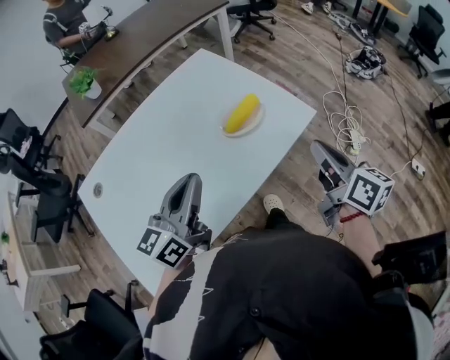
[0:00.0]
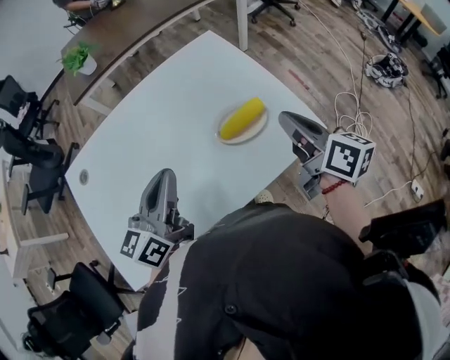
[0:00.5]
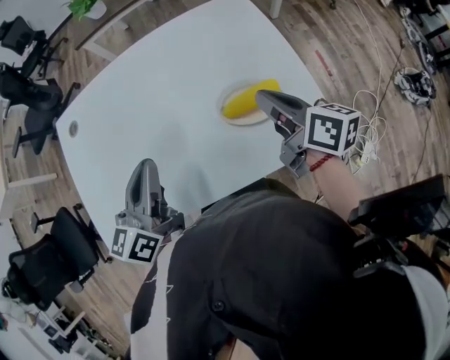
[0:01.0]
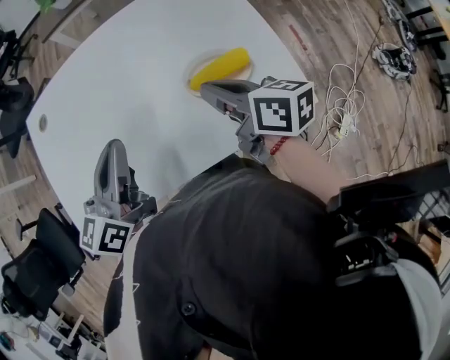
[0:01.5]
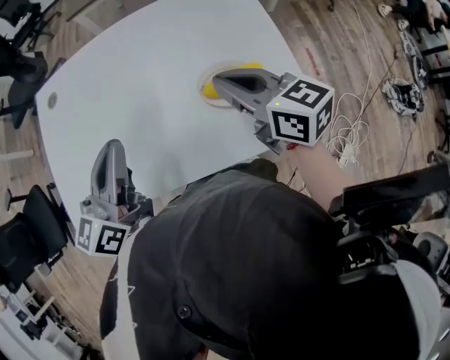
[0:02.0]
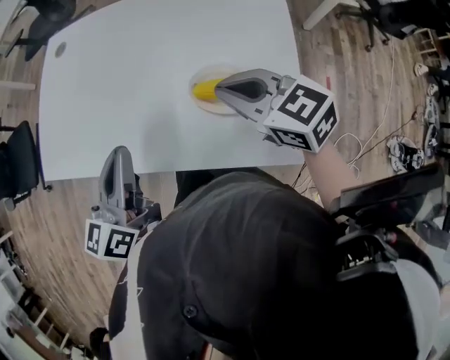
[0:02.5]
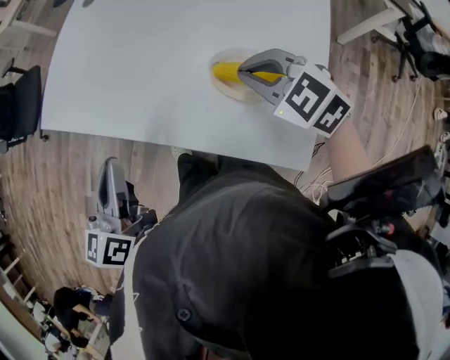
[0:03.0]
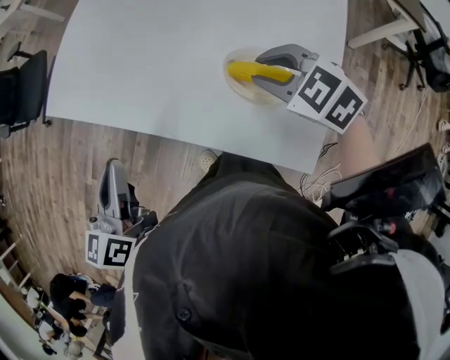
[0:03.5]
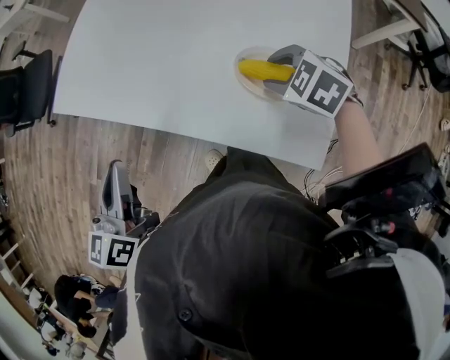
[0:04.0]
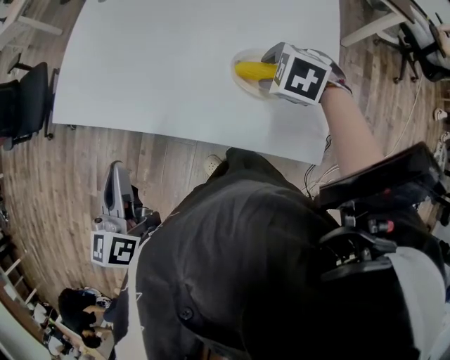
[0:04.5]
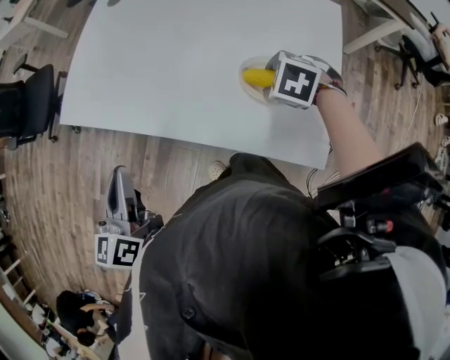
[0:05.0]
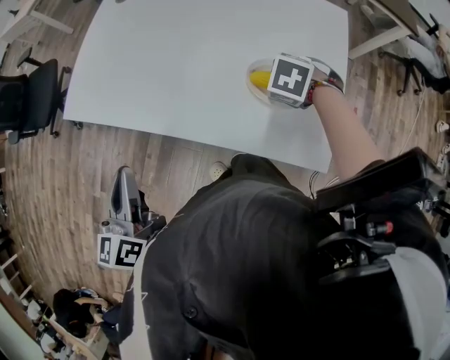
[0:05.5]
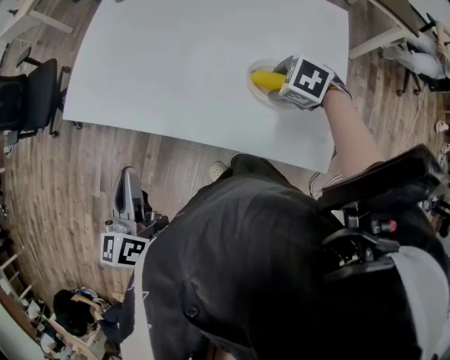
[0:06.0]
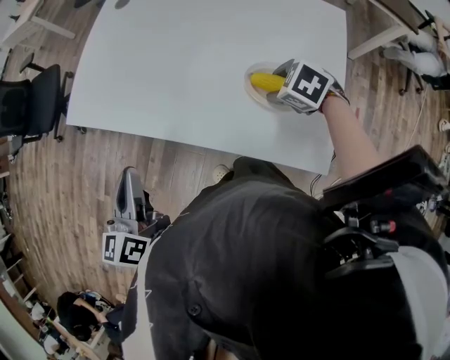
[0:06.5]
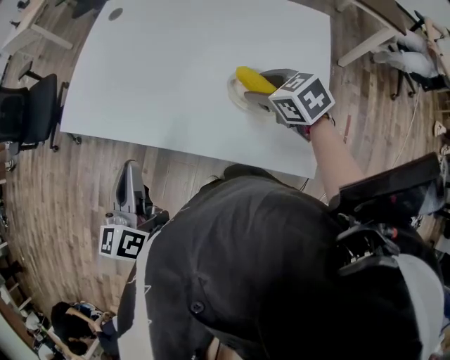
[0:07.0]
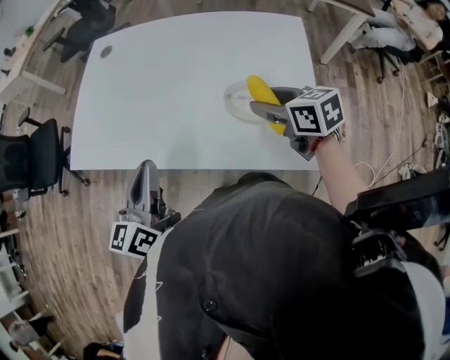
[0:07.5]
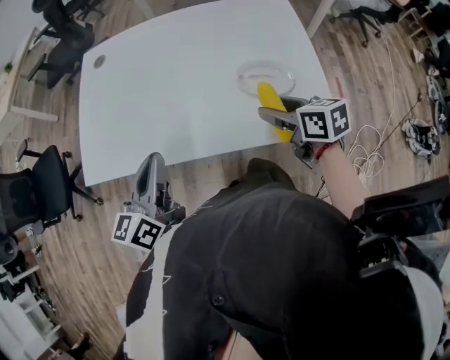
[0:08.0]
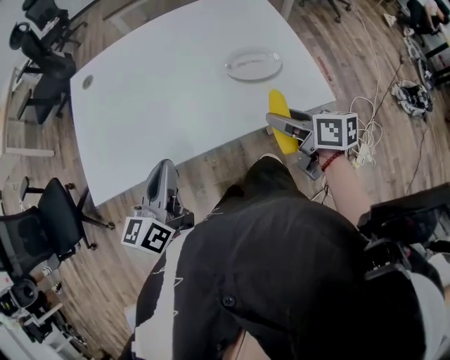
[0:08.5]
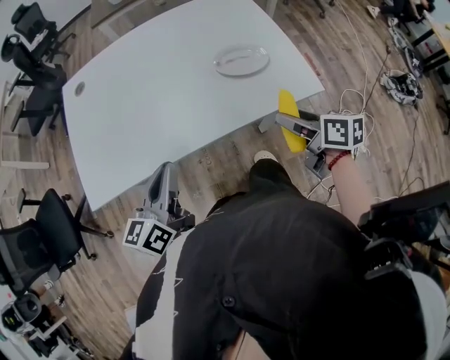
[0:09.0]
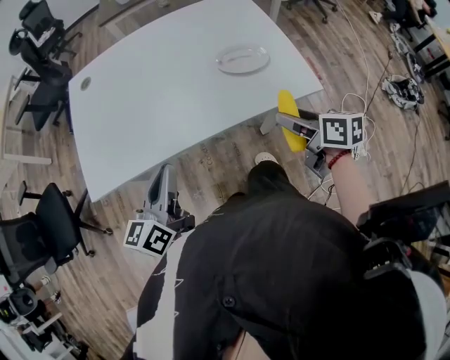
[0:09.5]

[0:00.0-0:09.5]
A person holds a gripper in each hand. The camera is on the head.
0.0 to 2.0 s: The left gripper changes place by some 5 cm, and swivels roughly 40 degrees. The right gripper moves about 25 cm, and swivels about 60 degrees.
2.0 to 4.0 s: The left gripper changes place by some 20 cm, and turns by about 50 degrees, while the right gripper travels downward by approximately 10 cm, tips its fingers downward by roughly 40 degrees, and opens its fingers.
4.0 to 5.5 s: The right gripper rotates roughly 20 degrees.
5.5 to 7.5 s: The left gripper moves about 10 cm, while the right gripper is displaced upward by some 10 cm, and tilts its fingers about 50 degrees upward.
7.5 to 9.5 s: The left gripper moves about 10 cm, and rotates approximately 30 degrees; the right gripper changes place by some 20 cm, and turns by approximately 40 degrees.

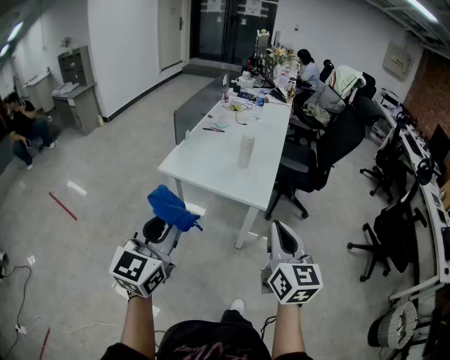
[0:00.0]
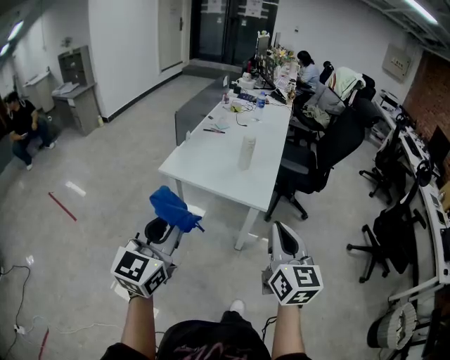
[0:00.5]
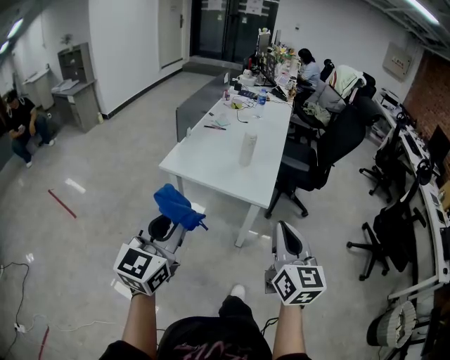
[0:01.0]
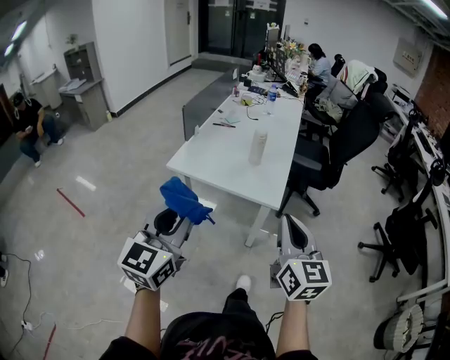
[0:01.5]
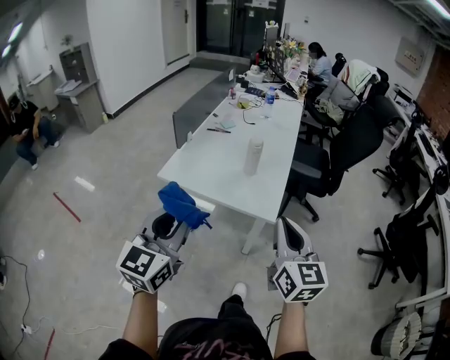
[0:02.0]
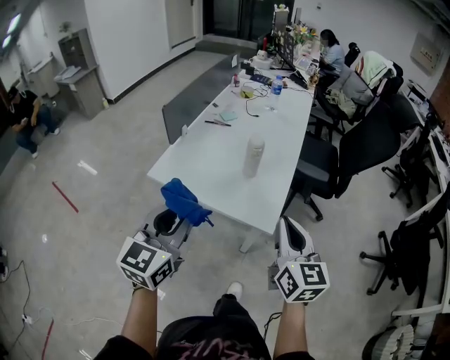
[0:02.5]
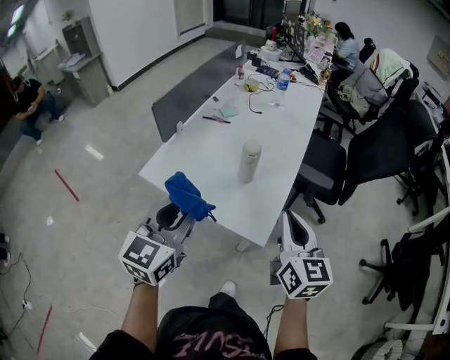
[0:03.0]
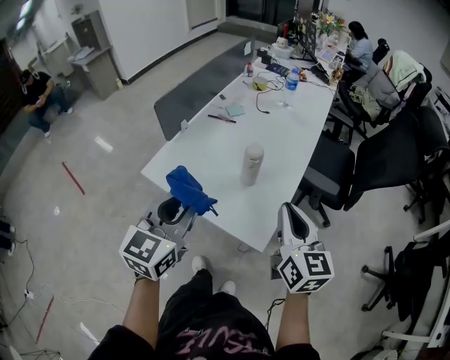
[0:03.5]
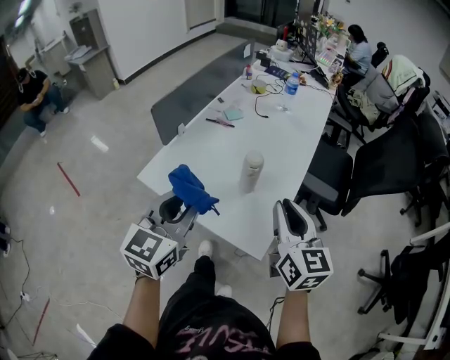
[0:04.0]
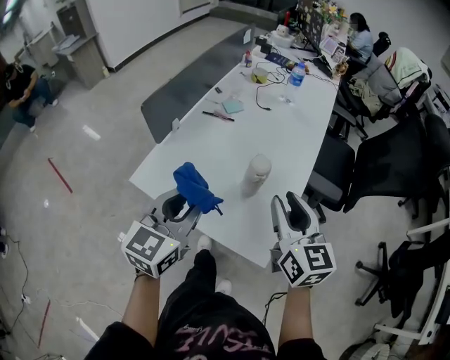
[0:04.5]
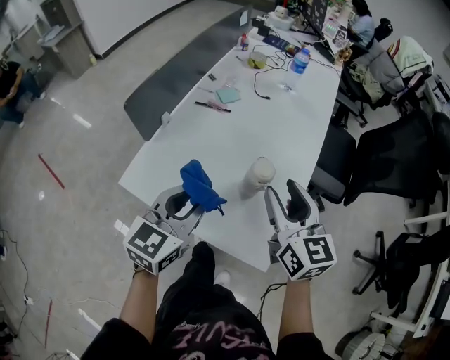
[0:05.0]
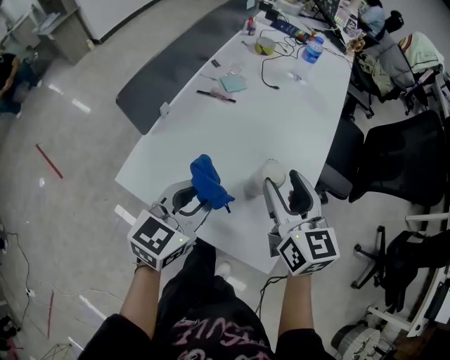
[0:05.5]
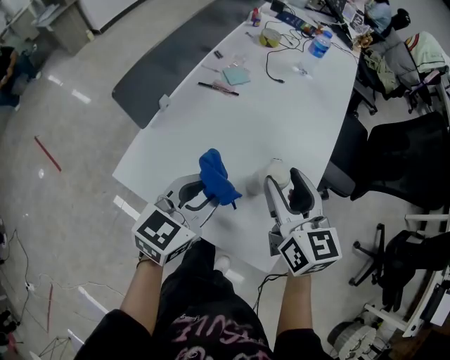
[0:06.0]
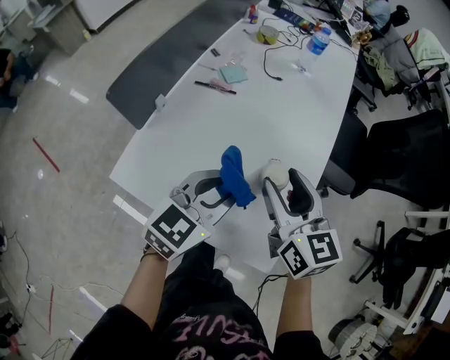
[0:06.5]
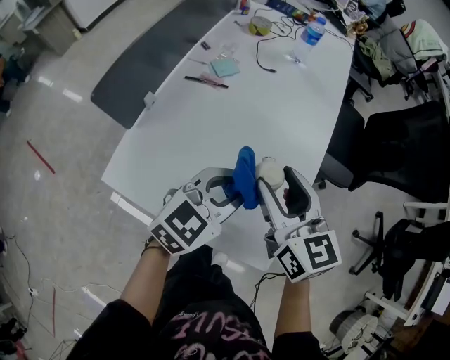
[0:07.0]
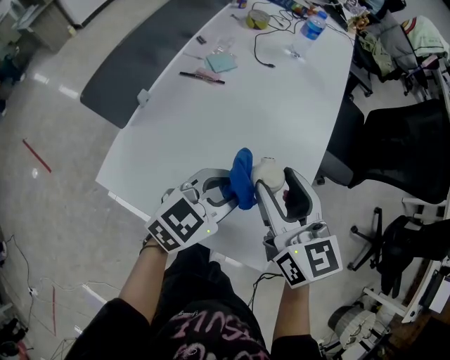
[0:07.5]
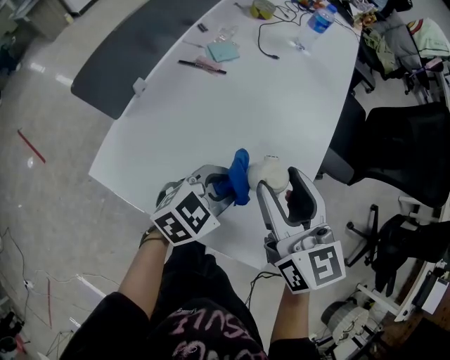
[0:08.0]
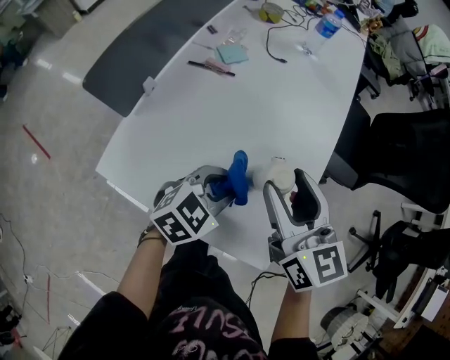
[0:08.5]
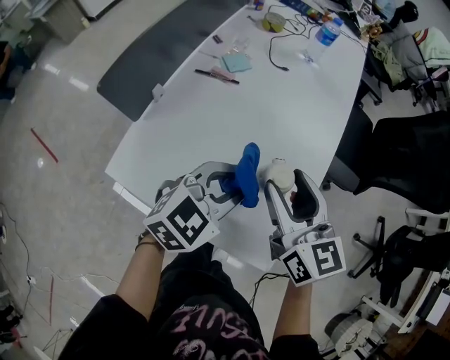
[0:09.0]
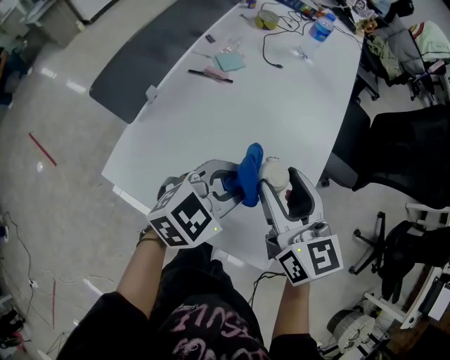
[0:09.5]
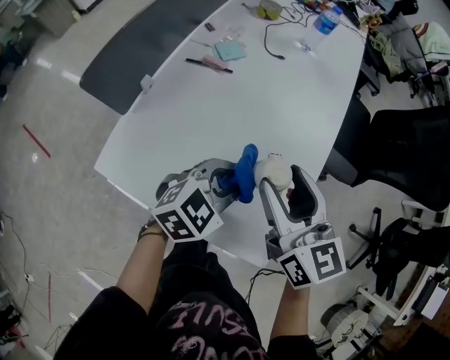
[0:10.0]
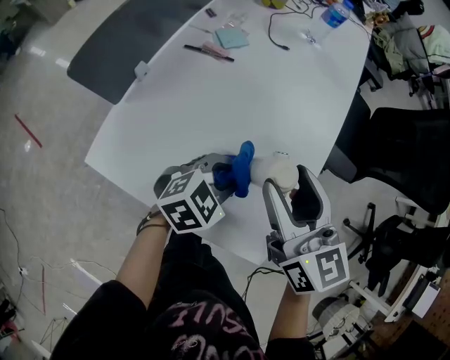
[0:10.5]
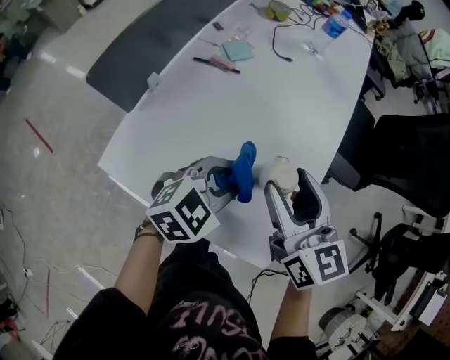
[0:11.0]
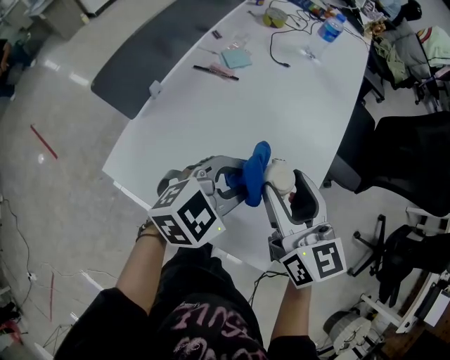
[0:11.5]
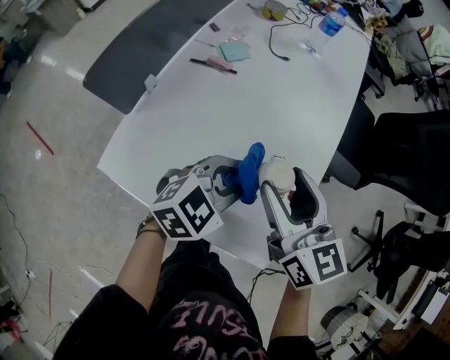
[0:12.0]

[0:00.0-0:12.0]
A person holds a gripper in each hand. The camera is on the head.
0.0 to 2.0 s: Both grippers travel together forward, about 10 cm.
2.0 to 4.0 s: Both grippers travel together forward, roughly 25 cm.
4.0 to 6.0 s: The left gripper travels forward and downward by approximately 20 cm, and turns by approximately 20 degrees; the right gripper is displaced forward, to the left and downward by some 20 cm, and opens its fingers.
6.0 to 8.0 s: The left gripper heads downward and to the right, covering some 10 cm, and turns by about 30 degrees.
8.0 to 10.0 s: The left gripper reaches approximately 10 cm upward, then returns.
10.0 to 12.0 s: The left gripper travels downward and back again, approximately 5 cm each way.

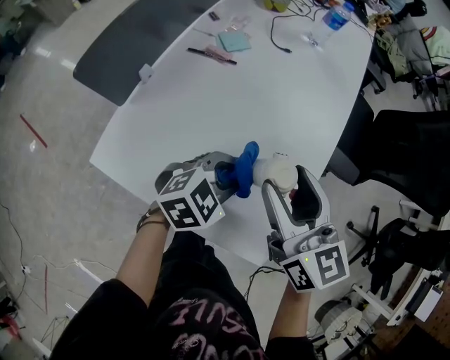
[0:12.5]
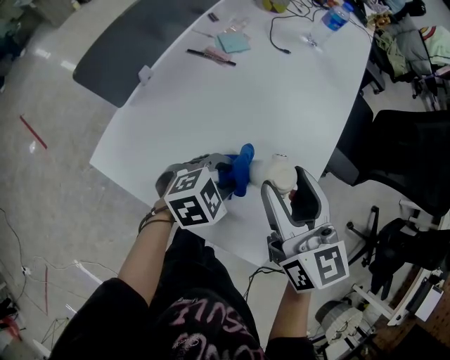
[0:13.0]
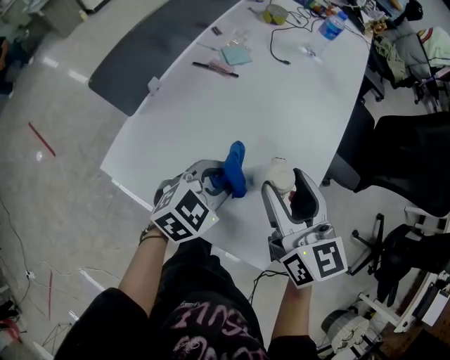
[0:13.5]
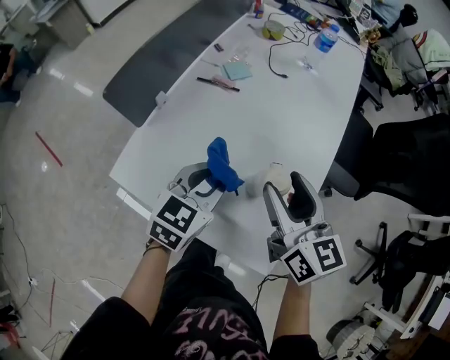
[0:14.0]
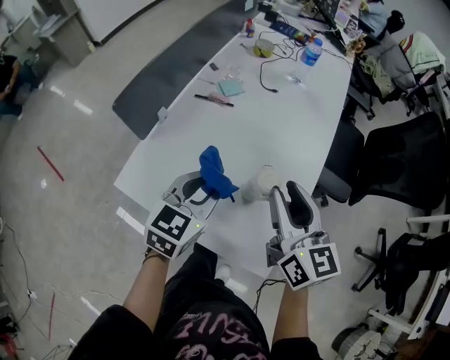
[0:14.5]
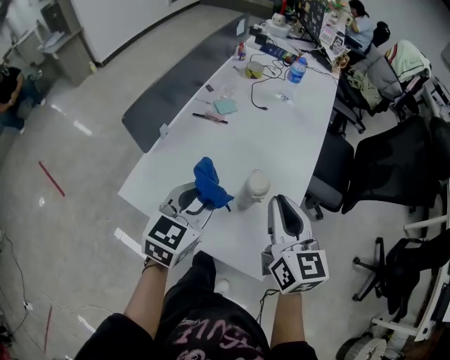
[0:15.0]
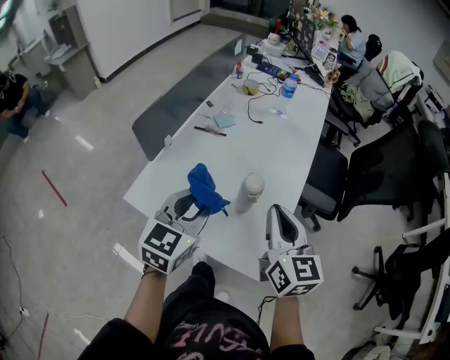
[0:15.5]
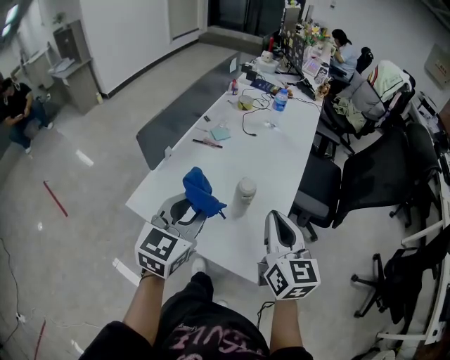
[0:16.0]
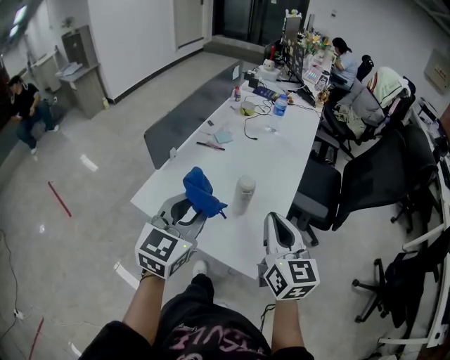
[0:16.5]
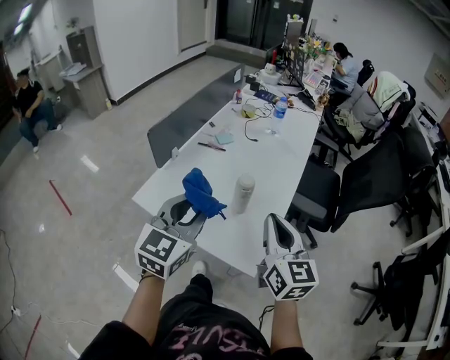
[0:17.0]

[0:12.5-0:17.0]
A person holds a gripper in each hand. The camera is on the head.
12.5 to 14.5 s: The left gripper heads upward and to the left, covering about 15 cm, and swivels roughly 40 degrees. Meanwhile the right gripper shifts by roughly 5 cm, and closes.
14.5 to 17.0 s: The grippers both shift backward and upward by roughly 20 cm. The left gripper changes its angle by about 20 degrees. Meanwhile the right gripper closes.

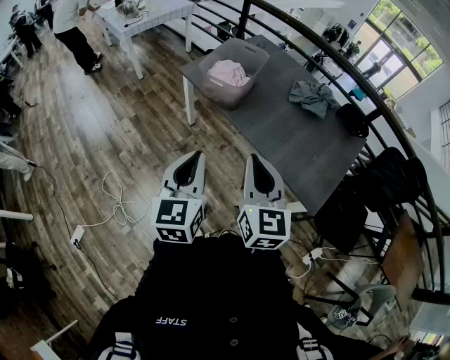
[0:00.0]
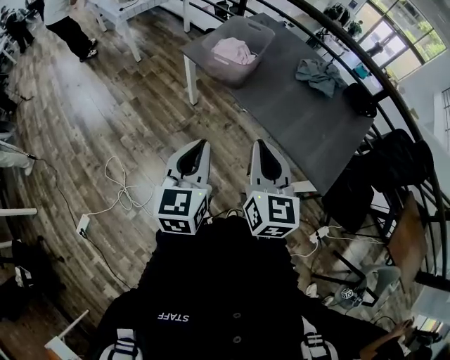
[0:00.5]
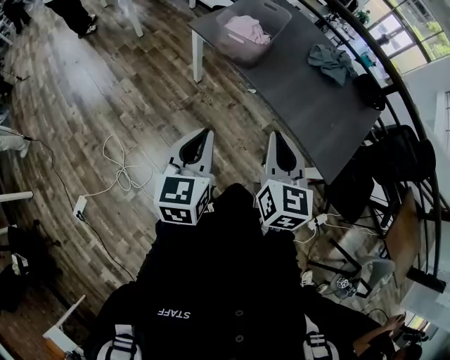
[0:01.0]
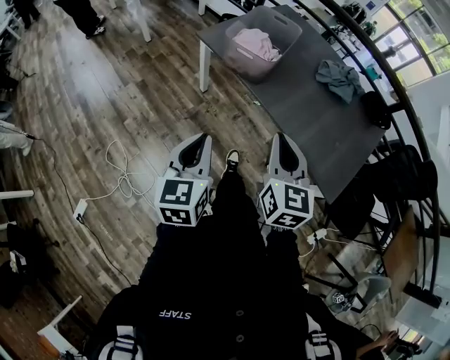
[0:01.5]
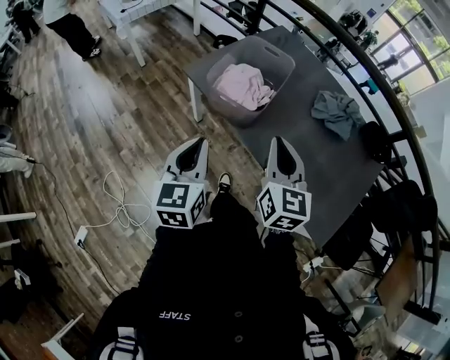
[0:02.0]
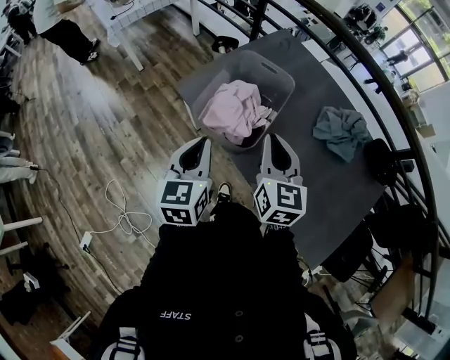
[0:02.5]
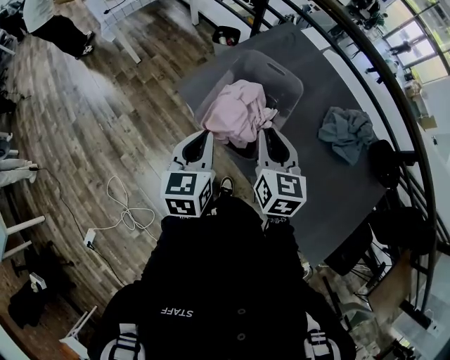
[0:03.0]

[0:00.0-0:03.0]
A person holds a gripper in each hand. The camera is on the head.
0.0 to 1.5 s: The right gripper travels forward and downward by about 10 cm. Meanwhile the left gripper travels to the left and downward by some 10 cm.
1.5 to 3.0 s: Both grippers are carried forward, about 40 cm.
